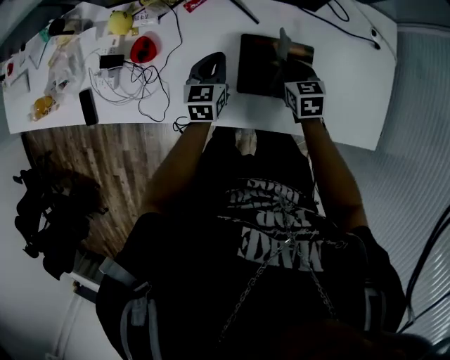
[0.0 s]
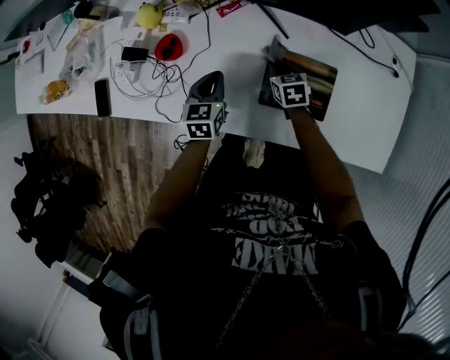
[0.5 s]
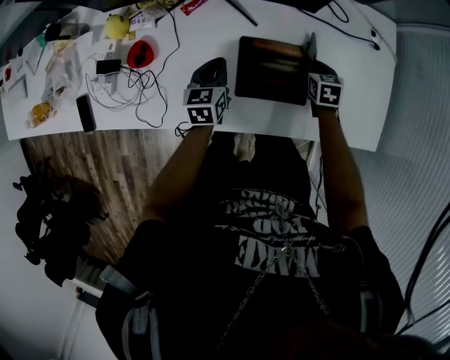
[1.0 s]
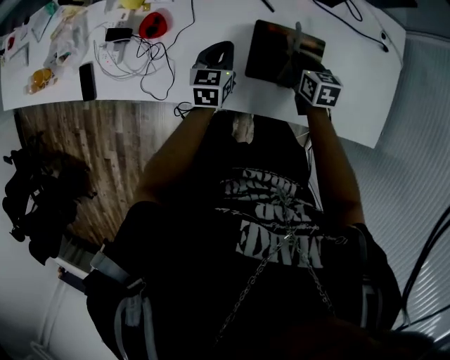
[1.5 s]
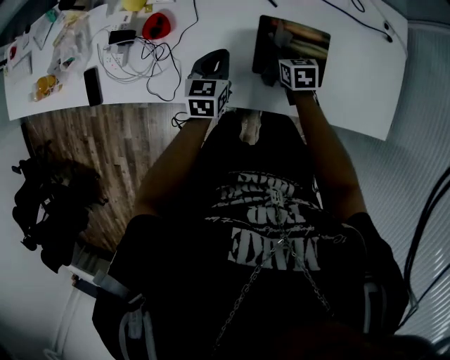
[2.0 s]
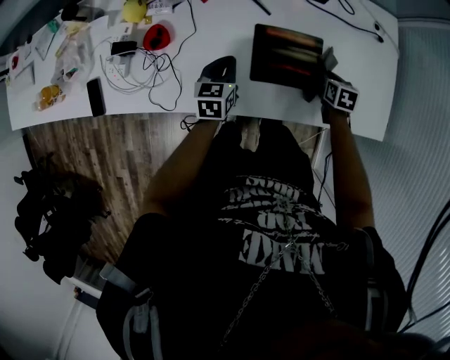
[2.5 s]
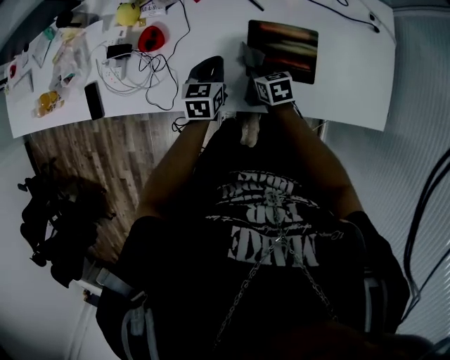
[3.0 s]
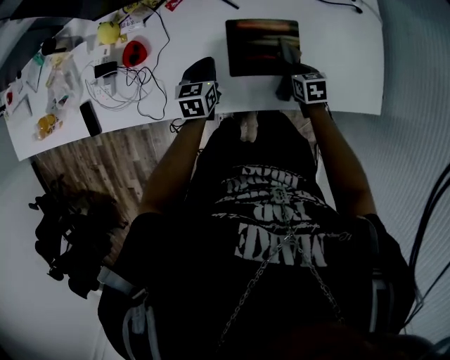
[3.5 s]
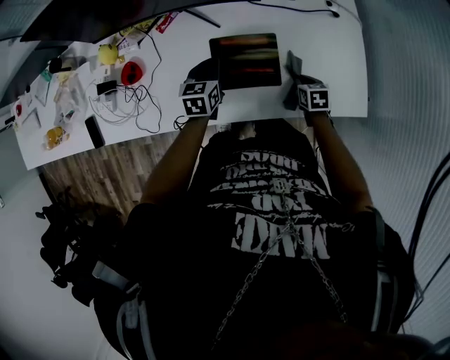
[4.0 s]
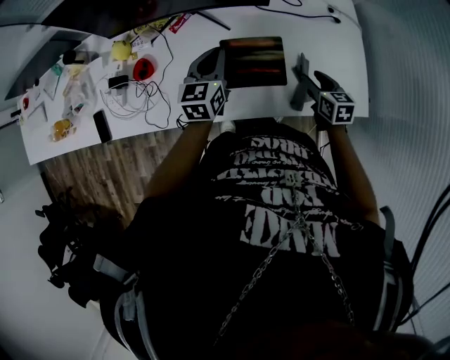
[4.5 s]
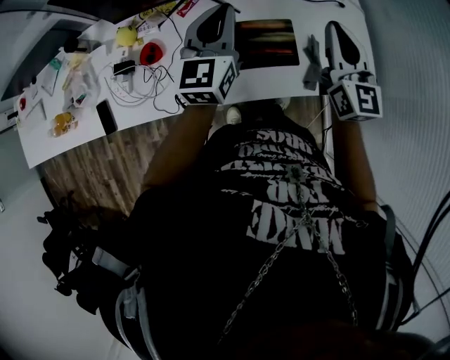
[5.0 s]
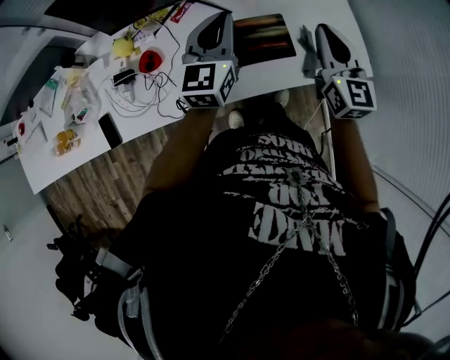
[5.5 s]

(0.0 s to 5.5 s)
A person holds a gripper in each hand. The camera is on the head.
0.0 s - 2.0 s: The left gripper swings left and right, about 10 cm each way, with 2 reversals. Meanwhile the right gripper moves left and right over about 20 cm, changing direction 2 times.
2.0 s - 3.5 s: The right gripper swings left and right, some 25 cm each way, with 2 reversals.
3.5 s - 5.5 s: Both grippers travel together upward, about 35 cm. The right gripper angles its fingers upward, by about 50 degrees, and opens, then closes again, while the left gripper tips its fingers upward by approximately 40 degrees.

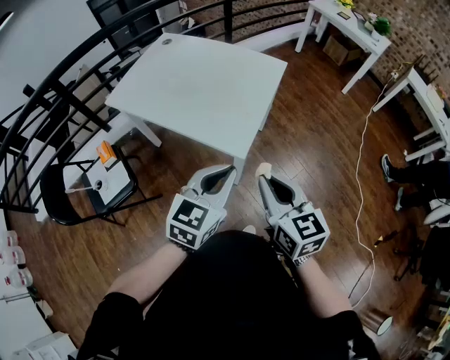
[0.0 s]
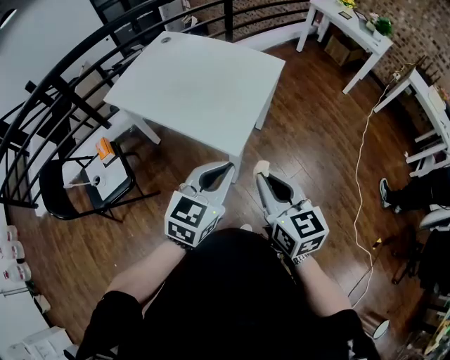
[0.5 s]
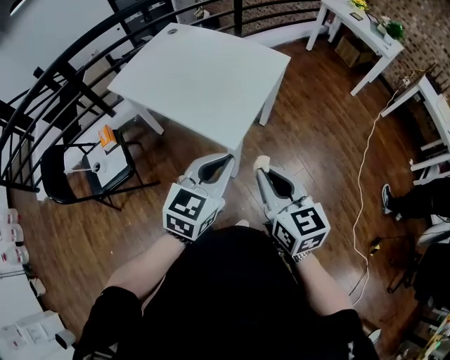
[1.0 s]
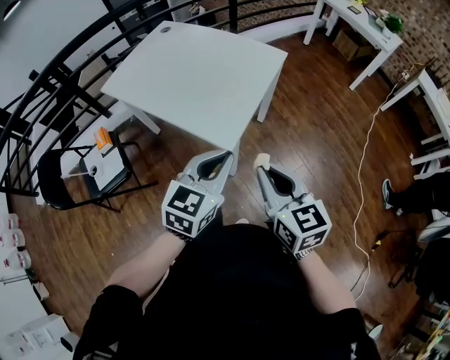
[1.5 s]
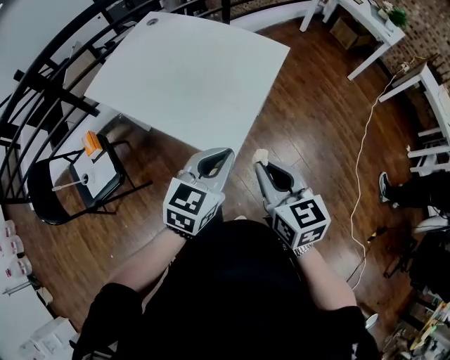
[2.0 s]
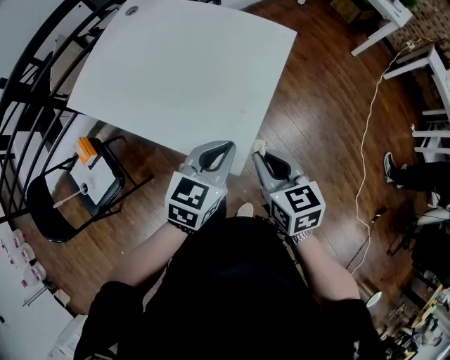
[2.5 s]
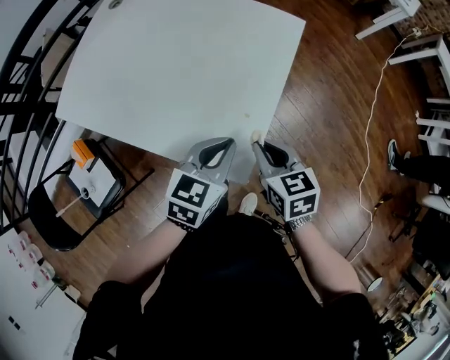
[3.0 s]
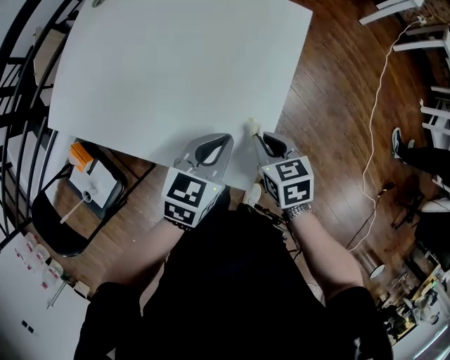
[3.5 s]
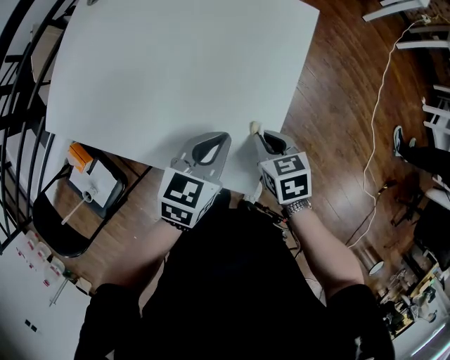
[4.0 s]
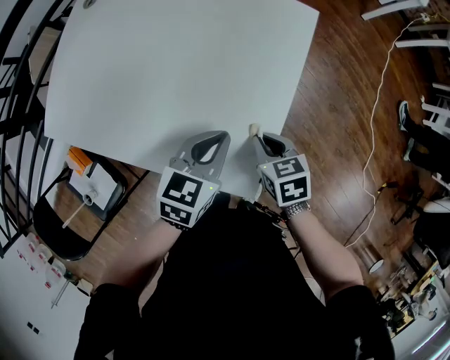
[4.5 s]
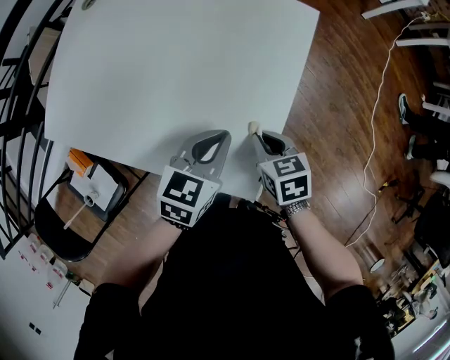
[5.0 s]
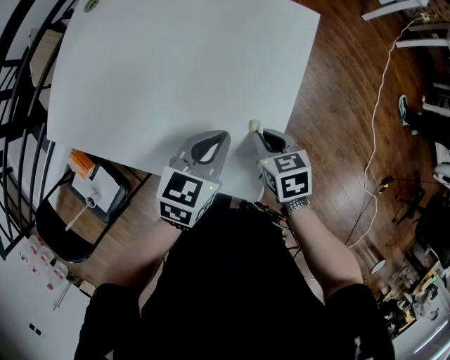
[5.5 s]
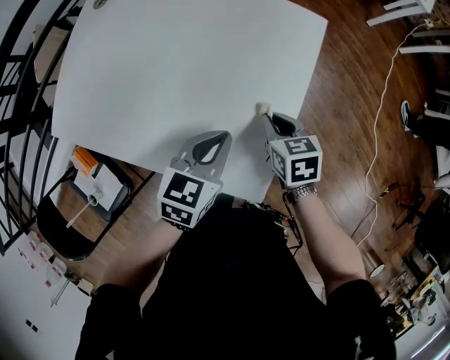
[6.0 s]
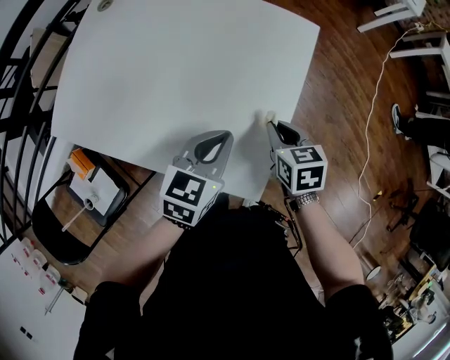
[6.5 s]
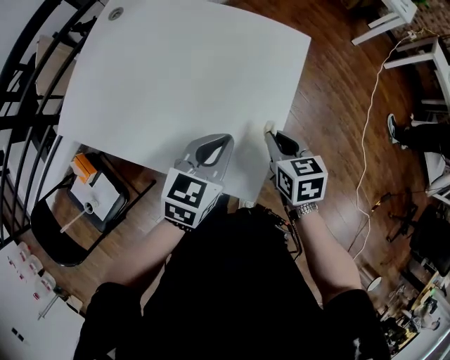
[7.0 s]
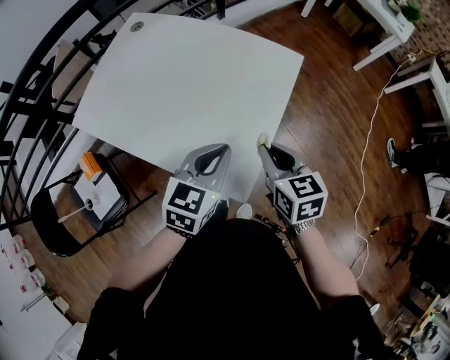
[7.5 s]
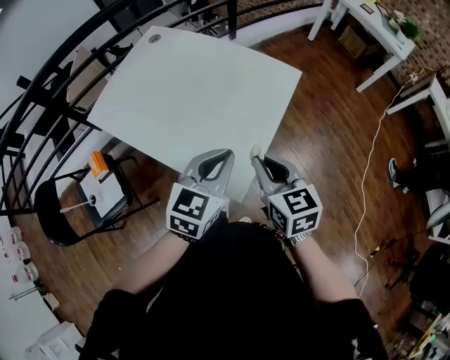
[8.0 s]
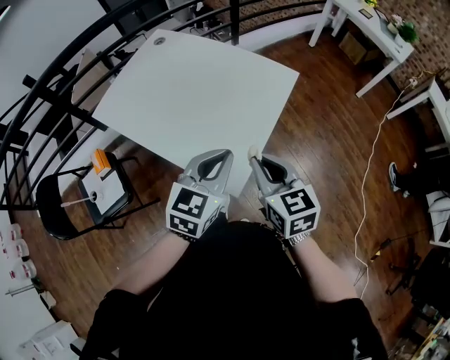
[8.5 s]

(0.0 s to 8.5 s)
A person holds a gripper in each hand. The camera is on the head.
0.0 s - 2.0 s: The right gripper moves forward, about 10 cm, while the left gripper goes approximately 10 cm forward and downward.
2.0 s - 4.0 s: The right gripper shifts roughly 30 cm downward and forward, and angles its fingers downward, by roughly 30 degrees. Meanwhile the left gripper moves forward and downward, some 20 cm, and rotates roughly 20 degrees.
4.0 s - 6.5 s: The right gripper heads forward, covering about 5 cm.
6.5 s - 8.5 s: The right gripper shifts about 25 cm upward and backward, and changes its angle by some 30 degrees, while the left gripper travels upward, backward and to the right by approximately 20 cm, and changes its angle by some 20 degrees.

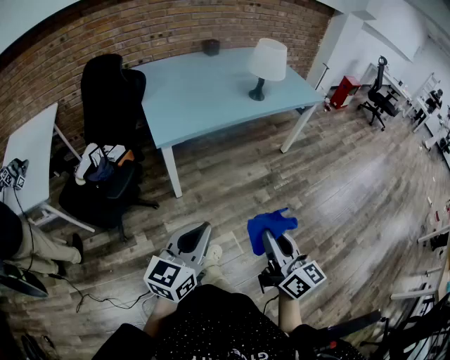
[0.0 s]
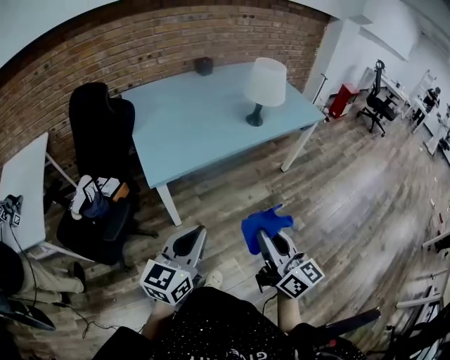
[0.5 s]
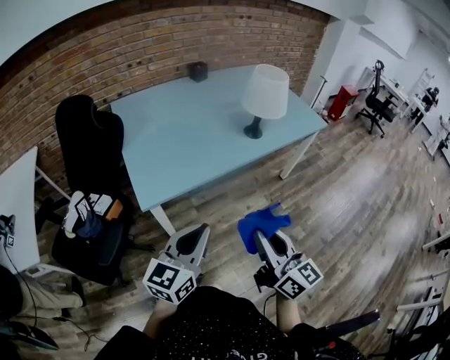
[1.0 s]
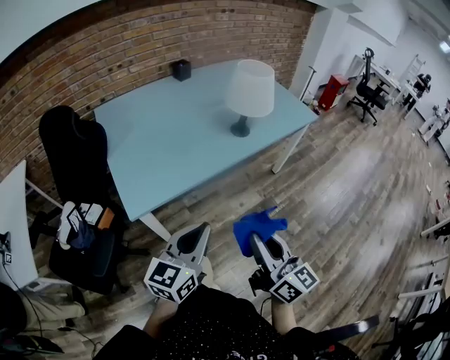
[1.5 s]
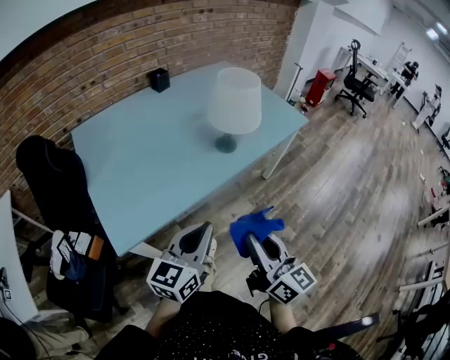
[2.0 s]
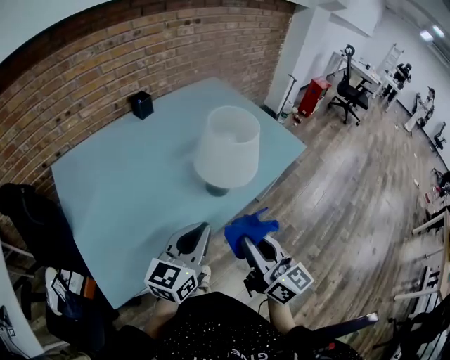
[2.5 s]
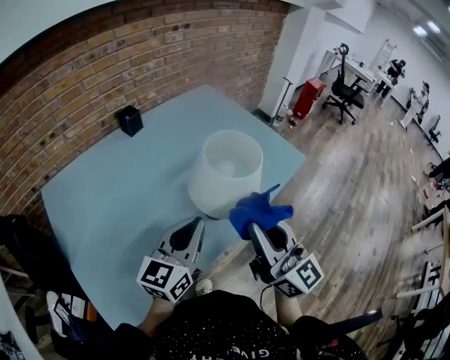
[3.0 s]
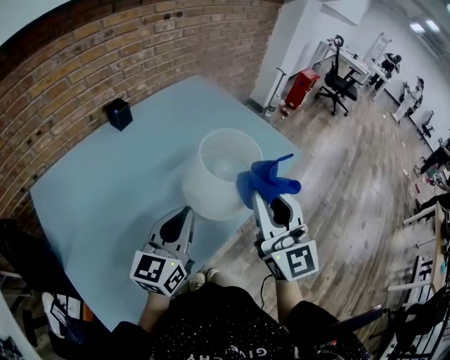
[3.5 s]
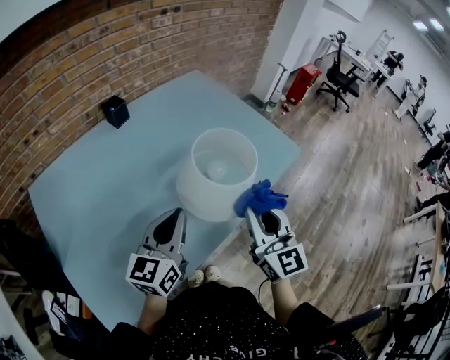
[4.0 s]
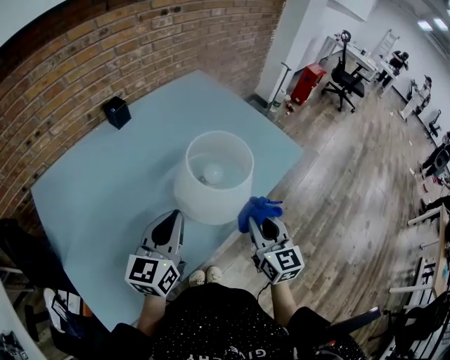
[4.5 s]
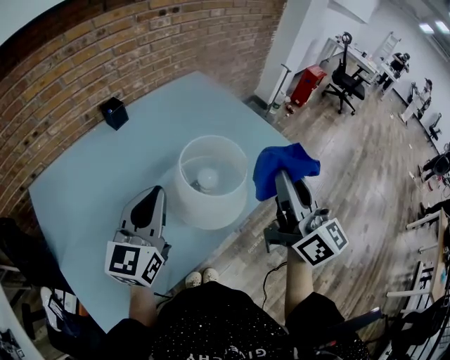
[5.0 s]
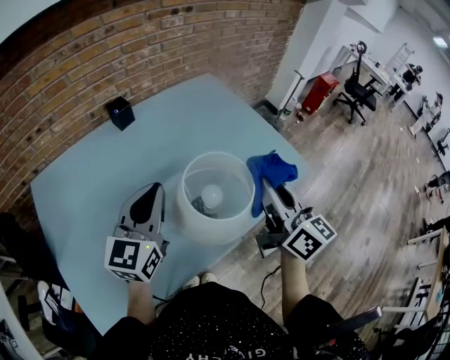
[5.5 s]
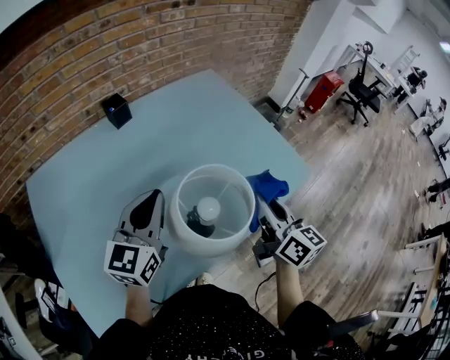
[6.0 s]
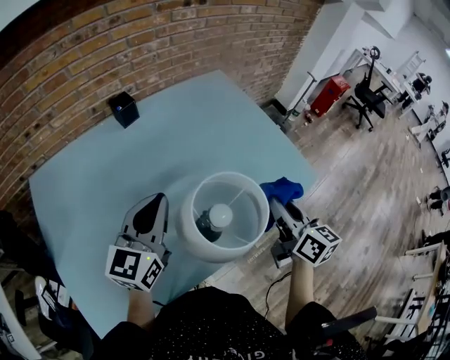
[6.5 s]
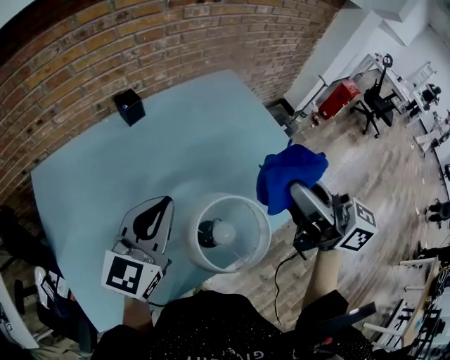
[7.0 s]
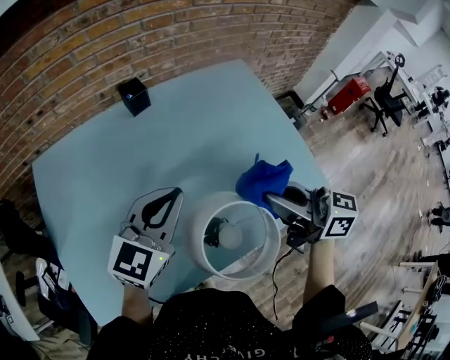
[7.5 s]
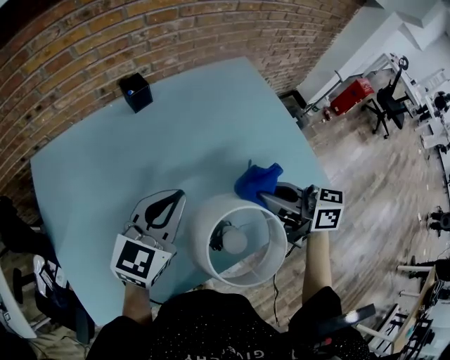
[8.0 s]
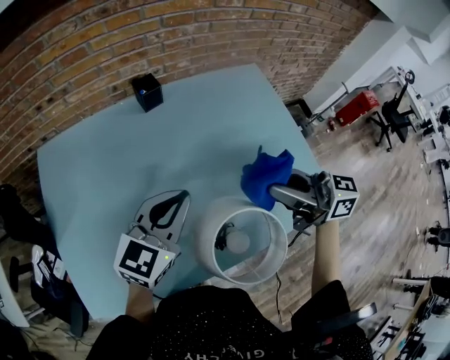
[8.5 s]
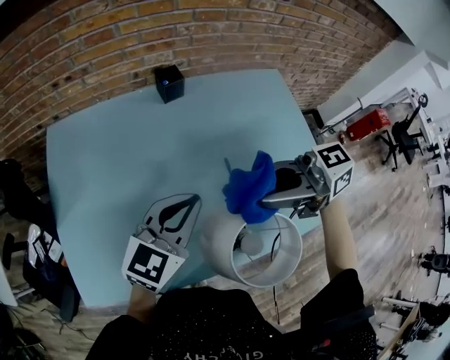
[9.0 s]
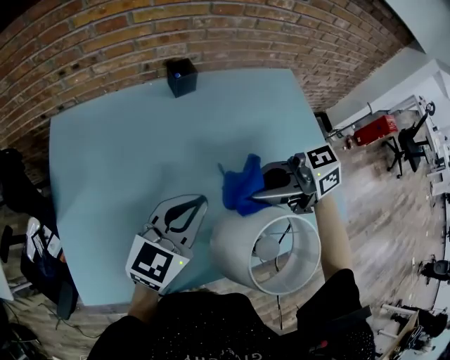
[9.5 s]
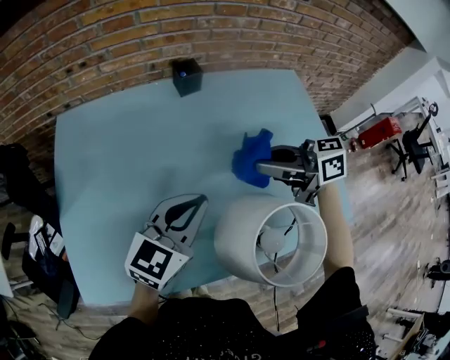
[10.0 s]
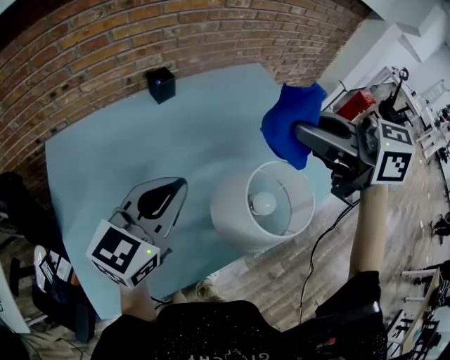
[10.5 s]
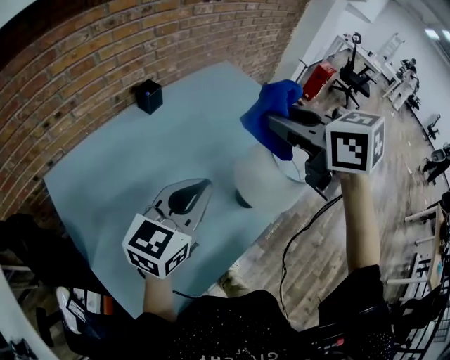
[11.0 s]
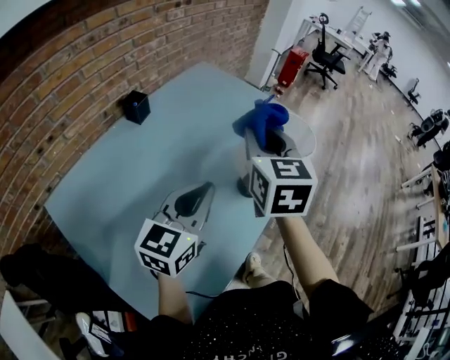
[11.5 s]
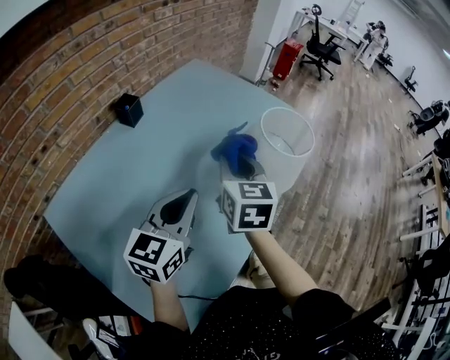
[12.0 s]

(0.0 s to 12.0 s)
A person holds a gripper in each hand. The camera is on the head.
0.0 s - 2.0 s: The two grippers go approximately 40 cm forward.
2.0 s - 4.0 s: The two grippers go some 35 cm forward. The right gripper swivels approximately 30 degrees.
4.0 s - 6.0 s: The right gripper goes up and down, some 20 cm each way, reversing 2 times, and turns by some 30 degrees. The left gripper travels forward by about 10 cm.
6.0 s - 8.0 s: The right gripper shifts about 10 cm forward and to the left, reaches approximately 15 cm upward, then returns, and rotates about 50 degrees; the left gripper heads forward, covering roughly 5 cm.
8.0 s - 10.0 s: The left gripper moves about 5 cm. The right gripper travels upward and back again, approximately 10 cm each way, and turns by about 30 degrees.
10.0 s - 12.0 s: The right gripper travels upward and back again, approximately 20 cm each way, and rotates some 110 degrees, while the left gripper shifts by some 15 cm, and swivels roughly 30 degrees.
